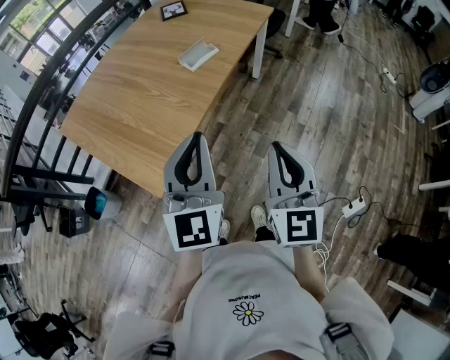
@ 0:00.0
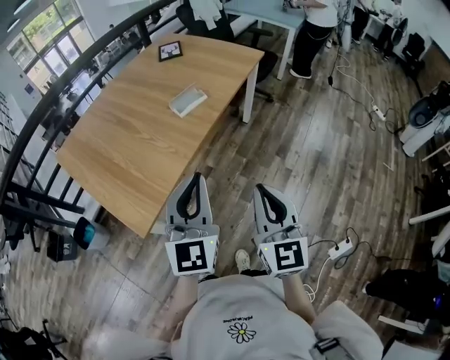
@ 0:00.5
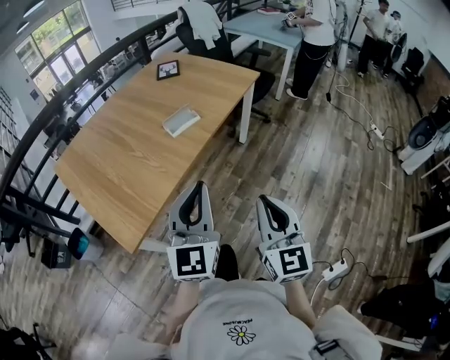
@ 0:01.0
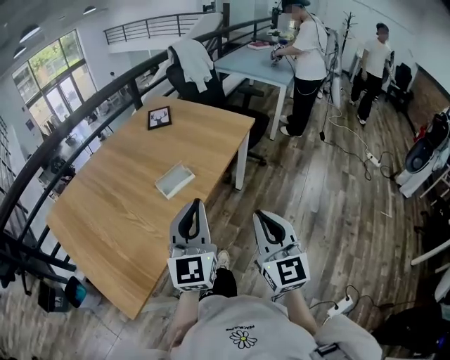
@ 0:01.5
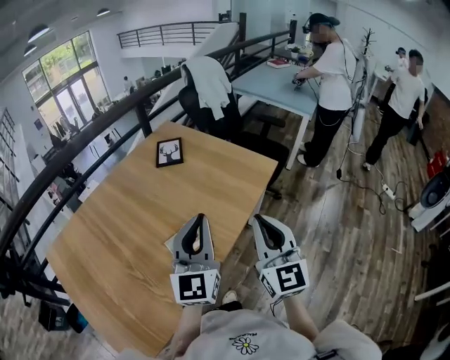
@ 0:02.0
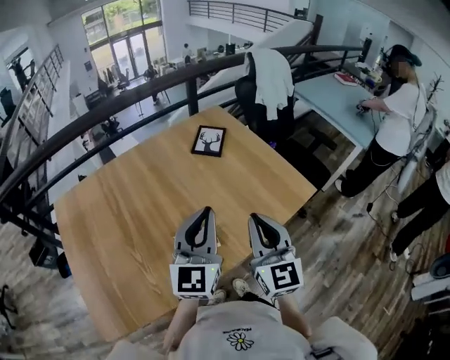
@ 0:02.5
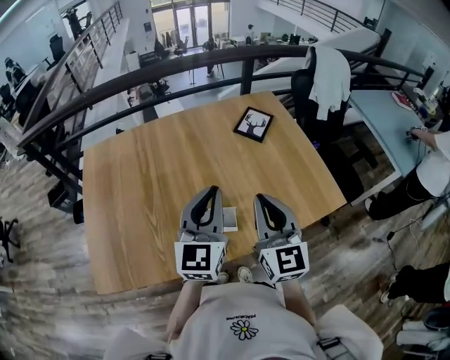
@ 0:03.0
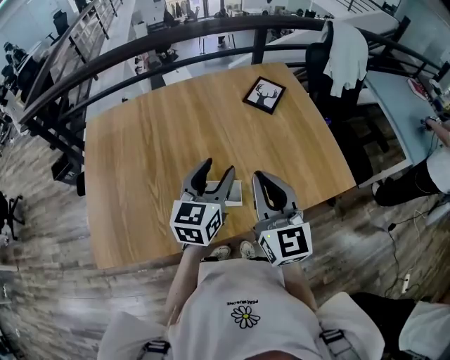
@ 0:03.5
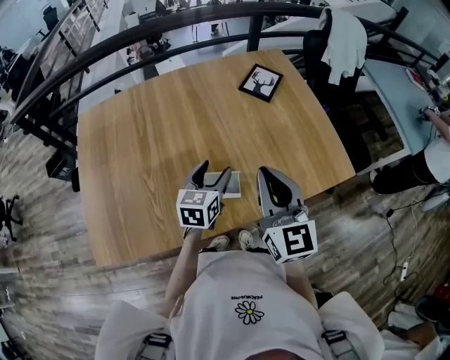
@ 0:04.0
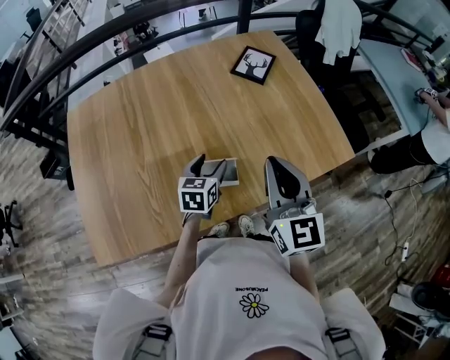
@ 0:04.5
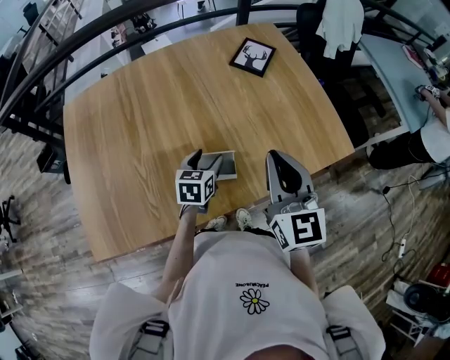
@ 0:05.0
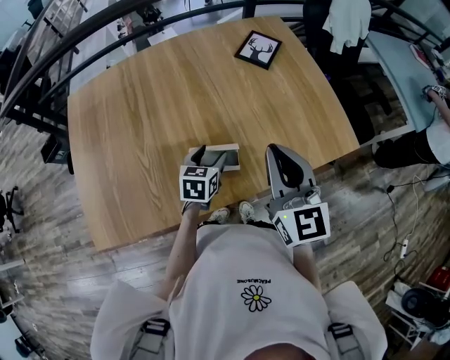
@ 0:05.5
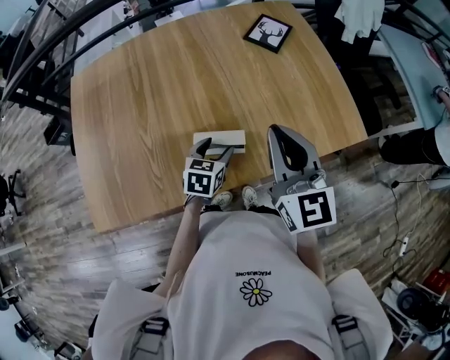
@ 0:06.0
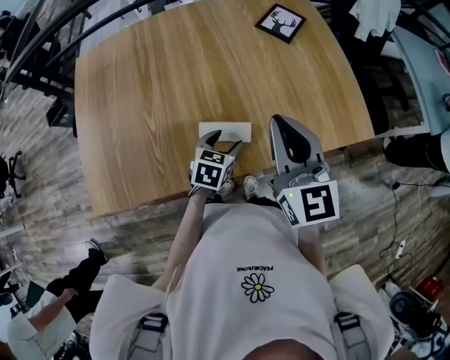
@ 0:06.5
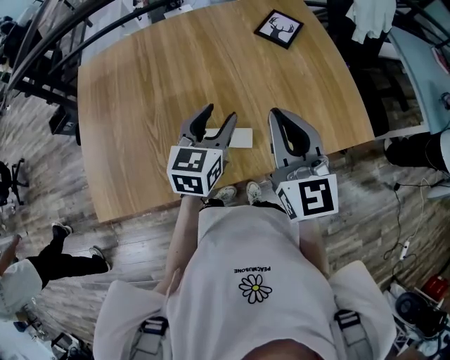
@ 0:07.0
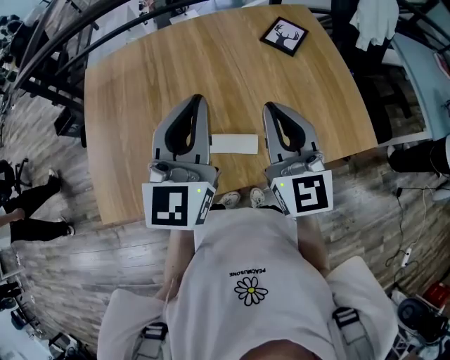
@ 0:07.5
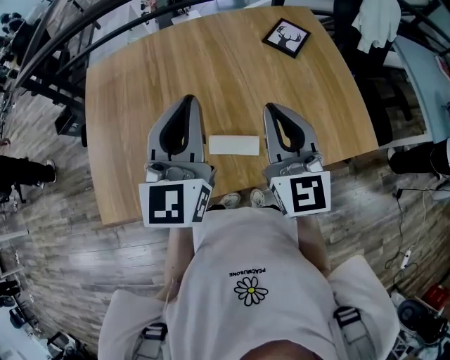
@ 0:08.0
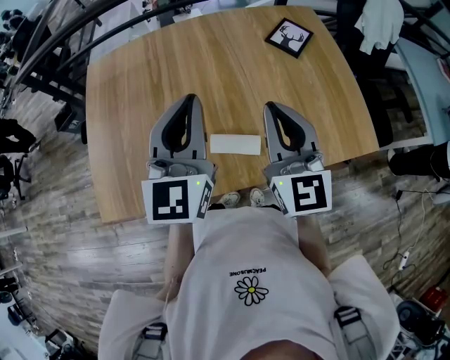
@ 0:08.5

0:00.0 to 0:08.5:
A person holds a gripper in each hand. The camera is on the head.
0:00.0 to 0:02.0: Both grippers are carried forward, some 50 cm.
0:02.0 to 0:04.0: The right gripper ends up roughly 20 cm from where it was, and swivels roughly 40 degrees. The left gripper is displaced downward by approximately 20 cm, angles its fingers downward, by some 30 degrees, and opens up.
0:04.0 to 0:06.5: The left gripper shifts approximately 10 cm downward and backward, and turns by approximately 20 degrees.
0:06.5 to 0:08.5: The right gripper changes place by about 5 cm; the left gripper is displaced upward by approximately 30 cm, tips its fingers upward by about 50 degrees, and closes.

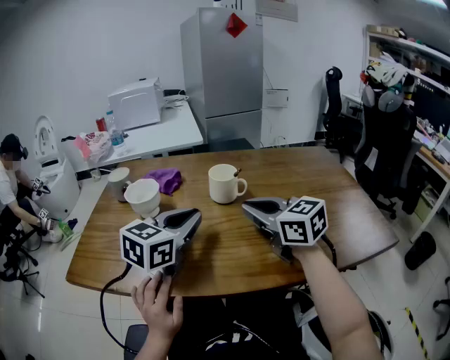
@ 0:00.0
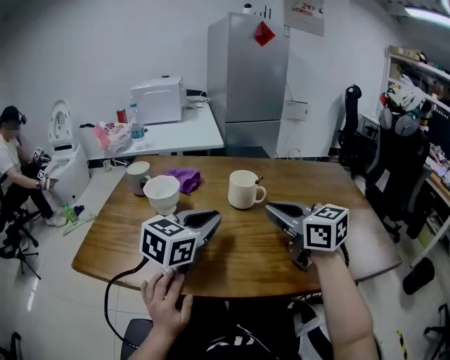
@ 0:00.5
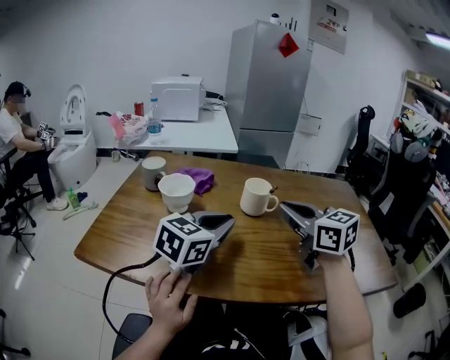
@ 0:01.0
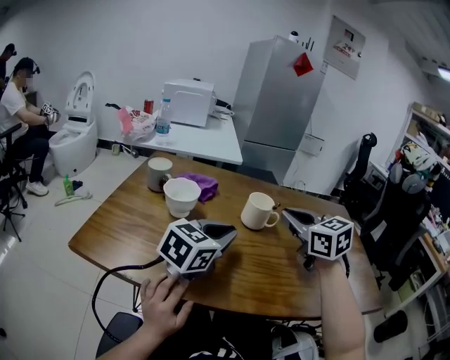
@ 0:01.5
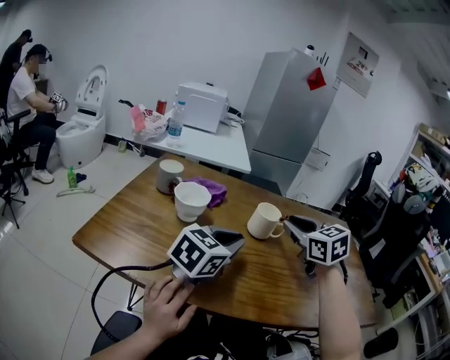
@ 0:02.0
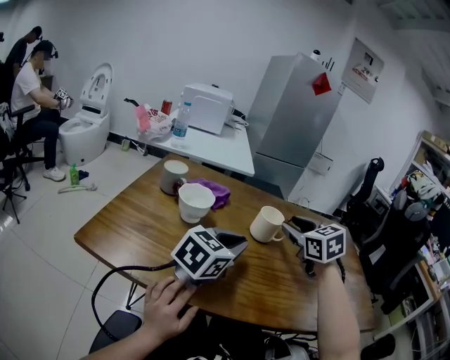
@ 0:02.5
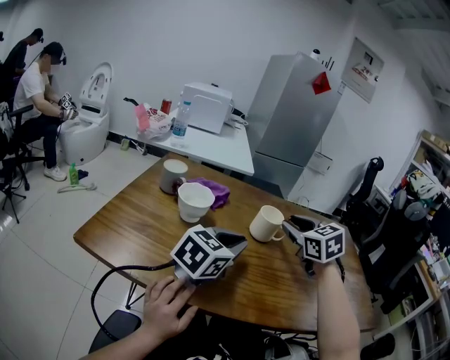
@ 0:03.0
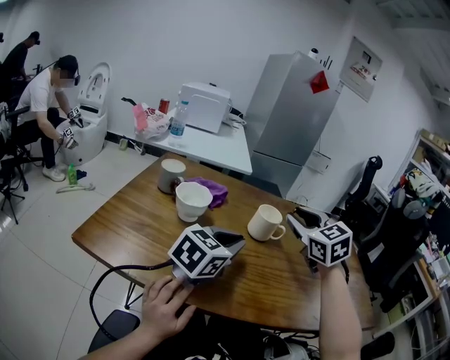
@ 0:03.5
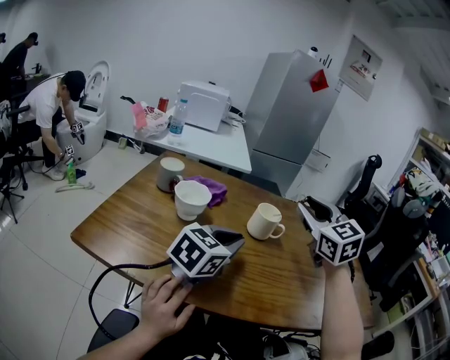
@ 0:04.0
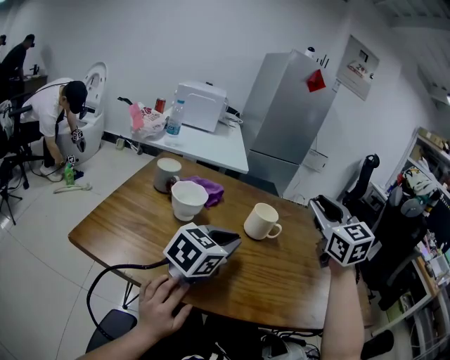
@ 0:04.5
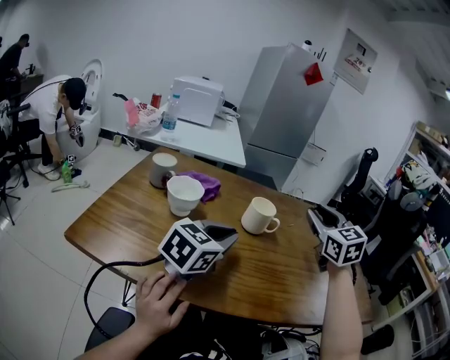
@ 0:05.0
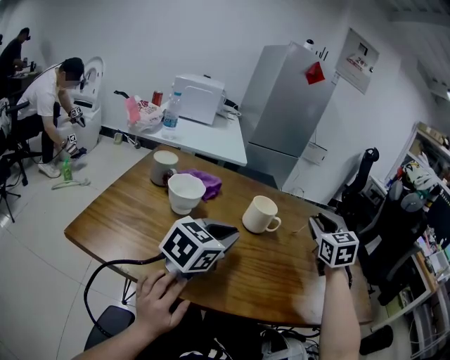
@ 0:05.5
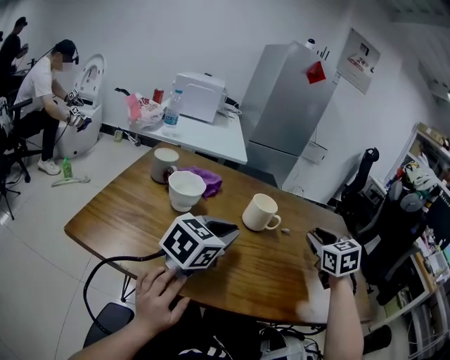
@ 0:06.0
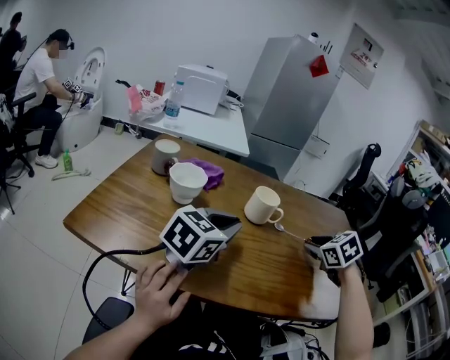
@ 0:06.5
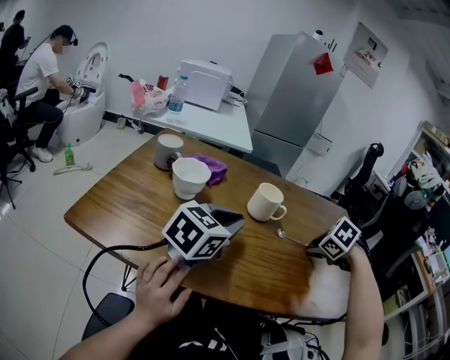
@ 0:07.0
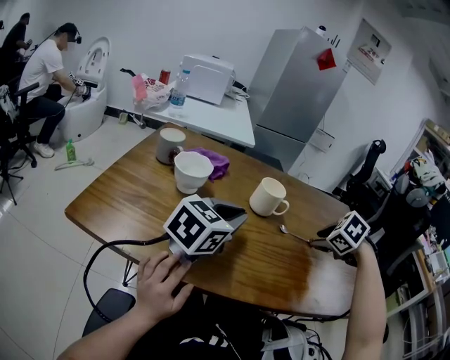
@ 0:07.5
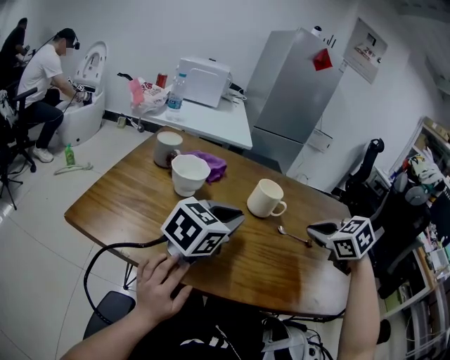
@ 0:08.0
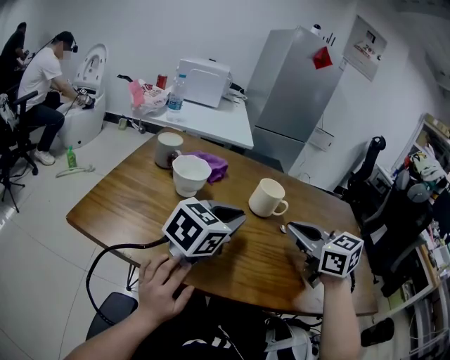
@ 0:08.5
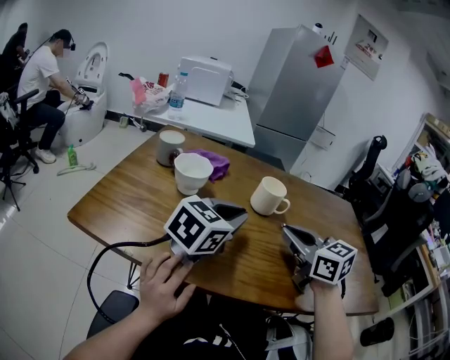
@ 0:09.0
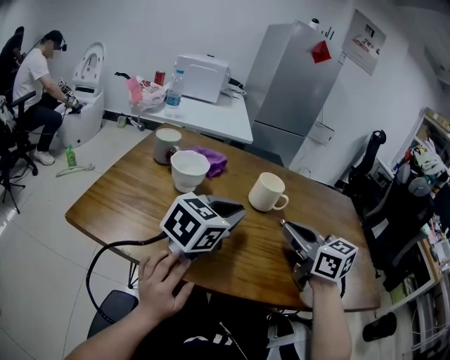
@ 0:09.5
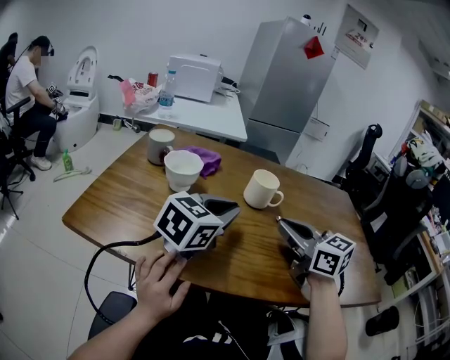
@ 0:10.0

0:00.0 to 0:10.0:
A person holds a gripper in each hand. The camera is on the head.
0:00.0 to 0:02.0: The right gripper travels forward by about 5 cm, and turns by approximately 20 degrees.
0:02.0 to 0:04.0: The right gripper goes about 10 cm upward.
0:04.0 to 0:06.0: The right gripper is displaced to the right and downward by about 15 cm, and turns by approximately 20 degrees.
0:06.0 to 0:08.0: The right gripper moves approximately 10 cm downward and comes back, changes its angle by roughly 30 degrees, and closes.
0:08.0 to 0:10.0: The right gripper moves to the left, roughly 10 cm, and tilts its fingers about 30 degrees upward.

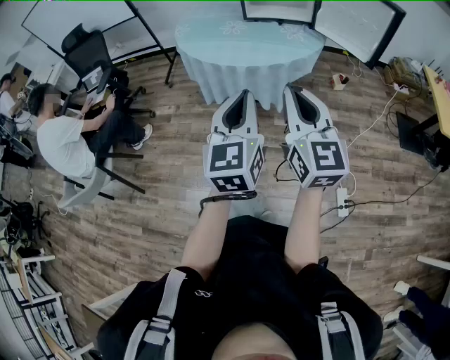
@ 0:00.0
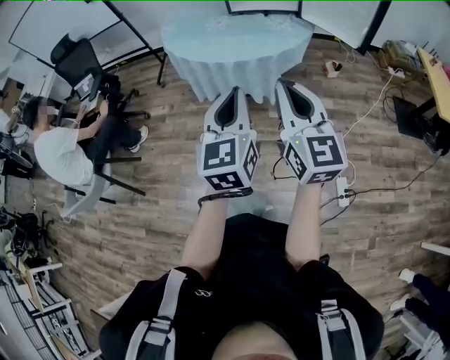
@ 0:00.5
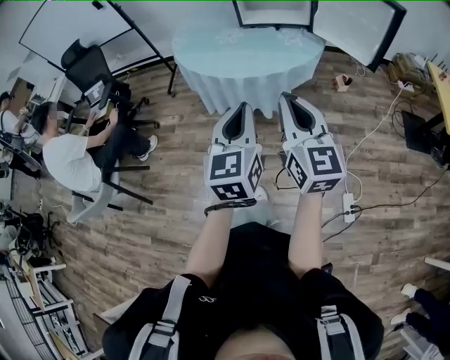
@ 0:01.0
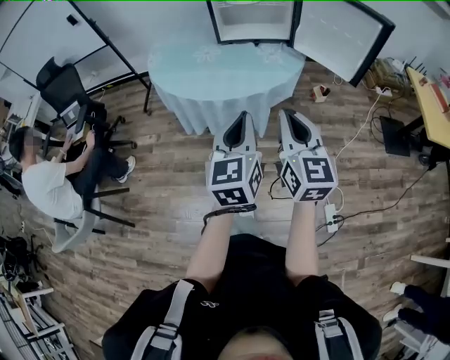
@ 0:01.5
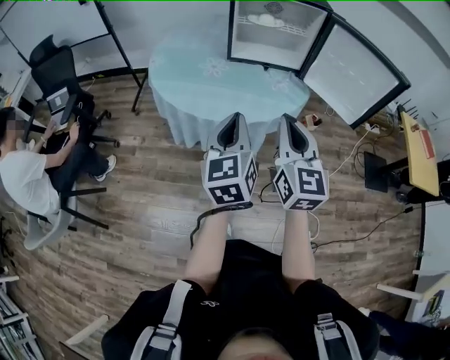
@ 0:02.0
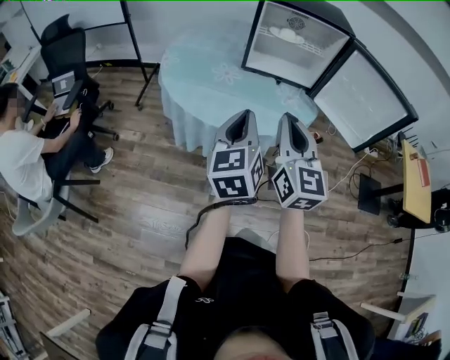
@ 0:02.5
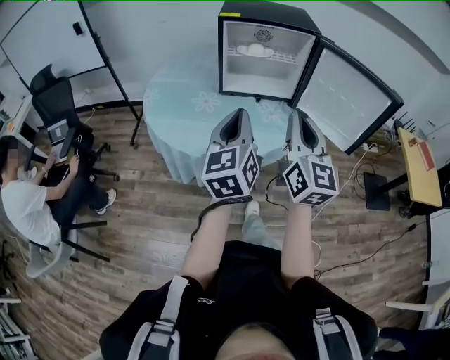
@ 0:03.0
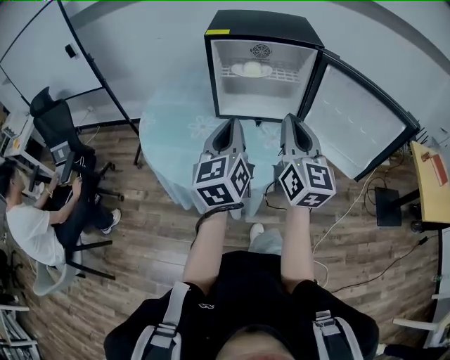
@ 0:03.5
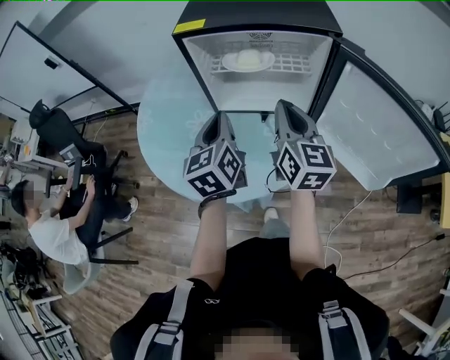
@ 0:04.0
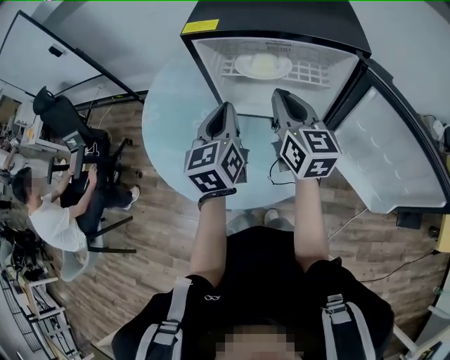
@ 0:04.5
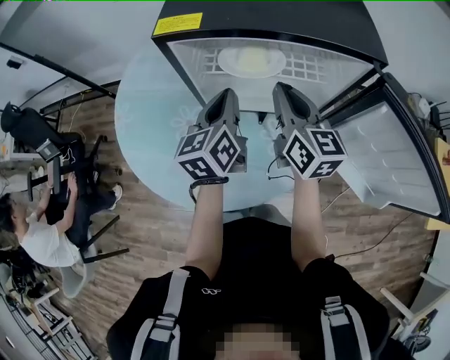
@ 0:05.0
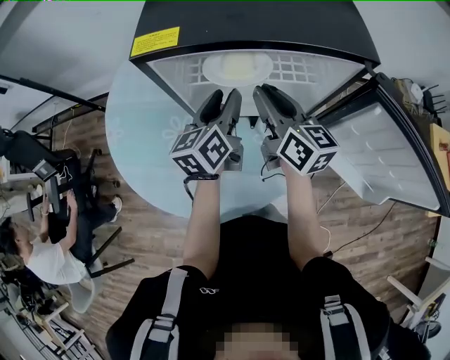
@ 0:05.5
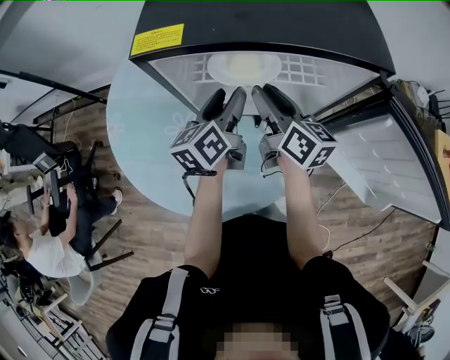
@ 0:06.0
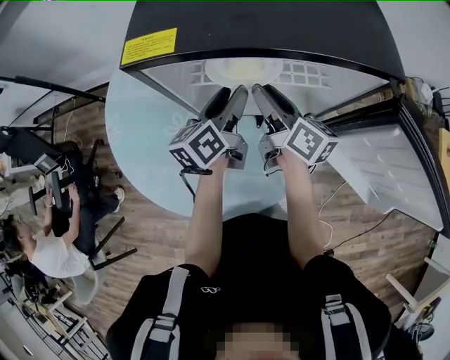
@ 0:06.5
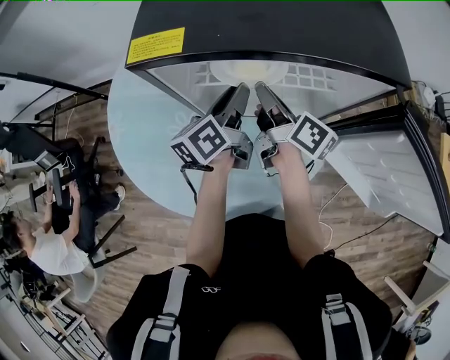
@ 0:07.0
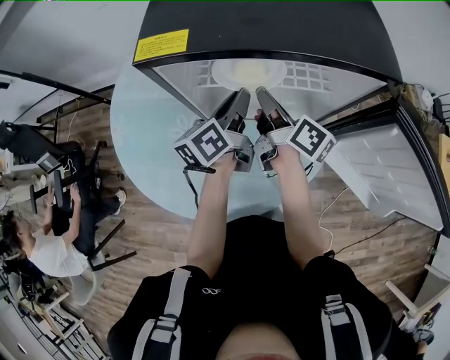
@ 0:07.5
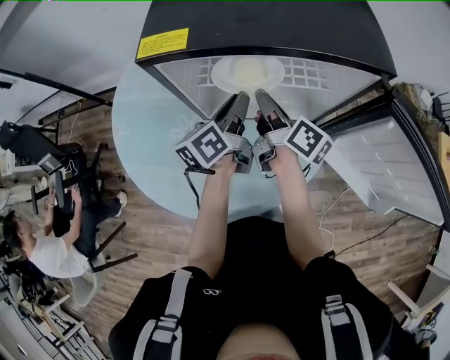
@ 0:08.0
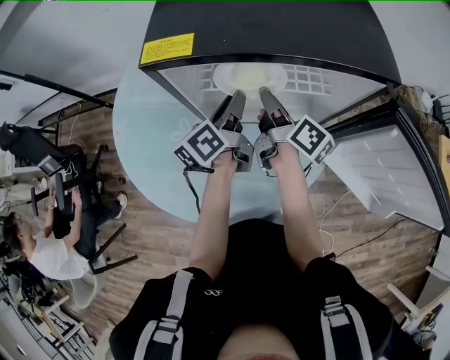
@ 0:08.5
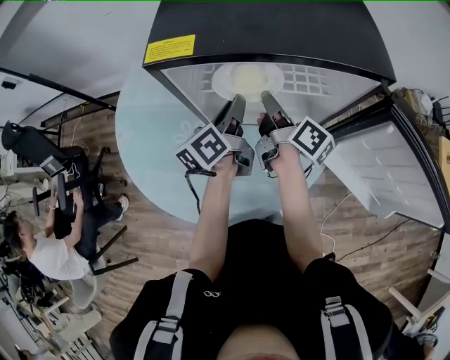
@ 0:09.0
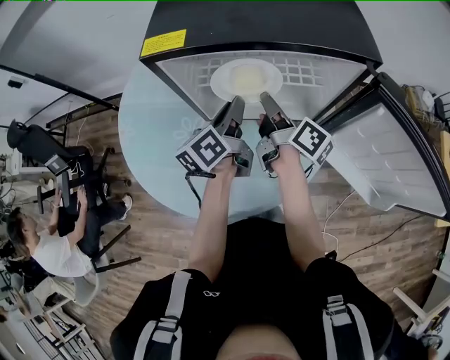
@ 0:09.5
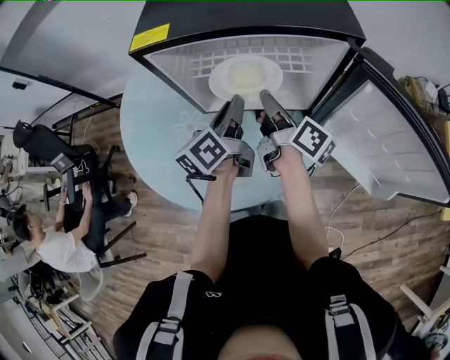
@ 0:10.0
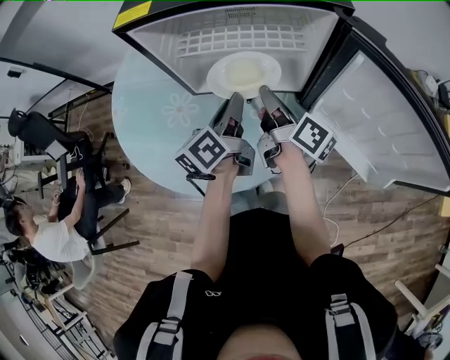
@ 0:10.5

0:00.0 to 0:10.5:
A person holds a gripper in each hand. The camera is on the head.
0:00.0 to 0:02.0: The two grippers go approximately 25 cm forward.
0:02.0 to 0:04.0: The grippers both shift forward by roughly 40 cm.
0:04.0 to 0:06.5: The two grippers go approximately 20 cm forward and downward. The left gripper changes its angle by roughly 30 degrees, and opens its fingers; the right gripper changes its angle by roughly 40 degrees, and opens up.
0:06.5 to 0:08.5: The left gripper closes.
0:08.5 to 0:10.5: The grippers both shift backward and to the right by approximately 15 cm.
